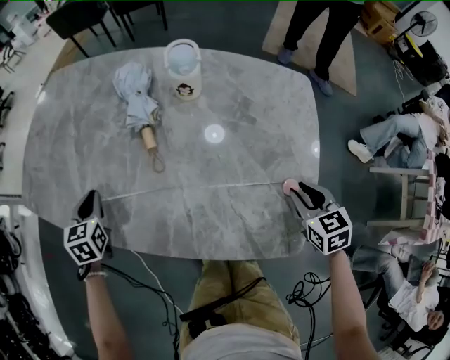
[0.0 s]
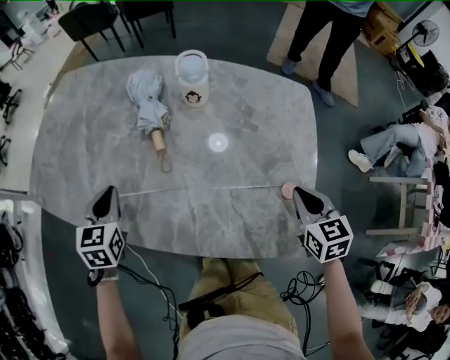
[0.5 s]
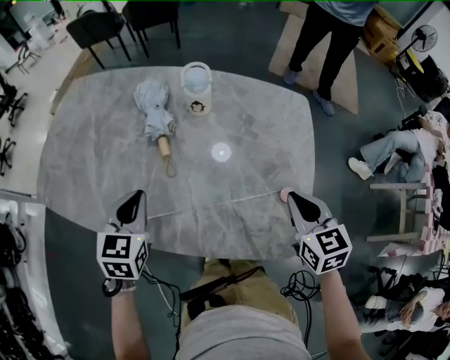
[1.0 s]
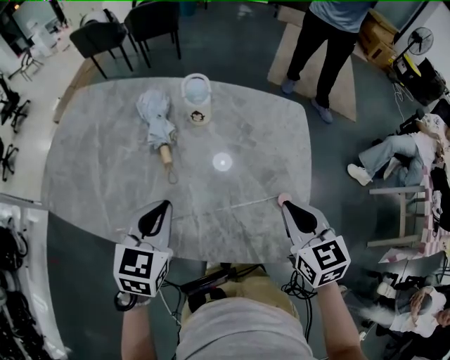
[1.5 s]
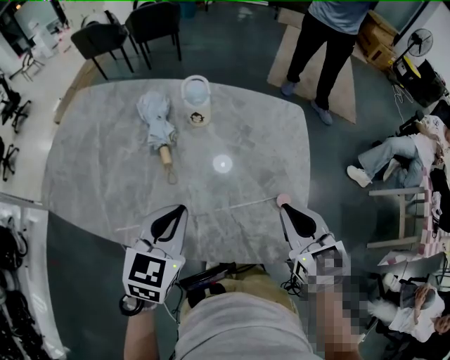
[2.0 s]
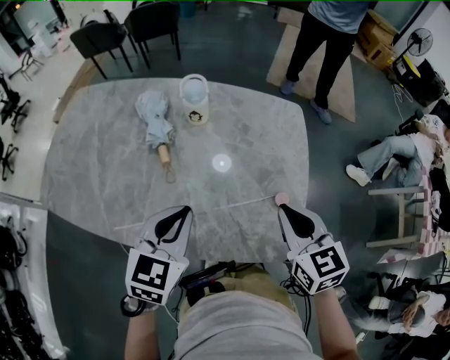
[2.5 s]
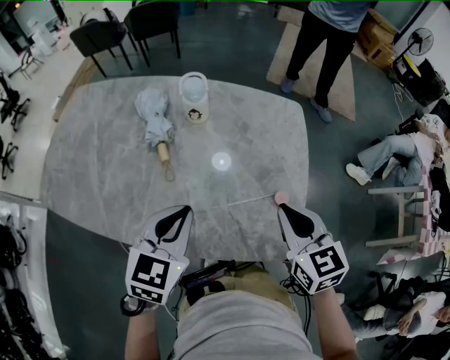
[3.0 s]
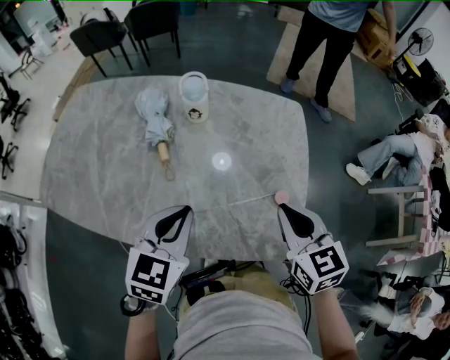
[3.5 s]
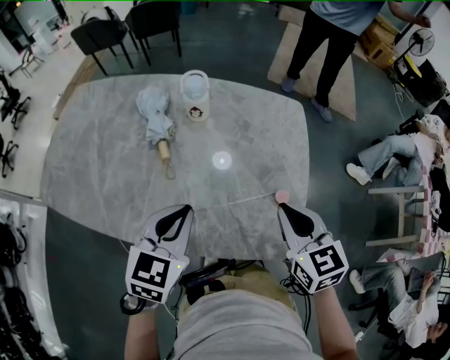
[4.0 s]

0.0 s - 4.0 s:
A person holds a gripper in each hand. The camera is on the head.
0.0 s - 2.0 s: The left gripper travels to the right and upward by roughly 30 cm, and rotates about 30 degrees. The right gripper is displaced upward and to the left by about 15 cm, and closes.
2.0 s - 4.0 s: The grippers move only a little.

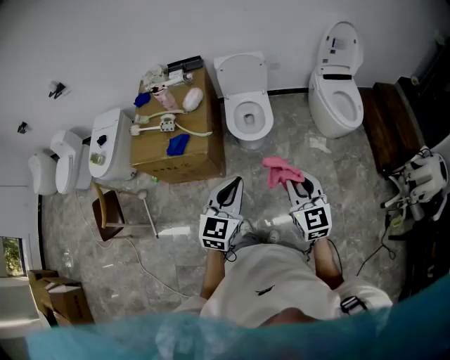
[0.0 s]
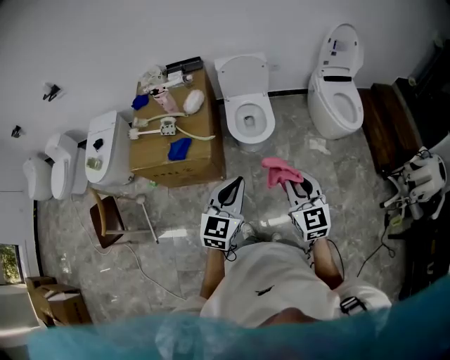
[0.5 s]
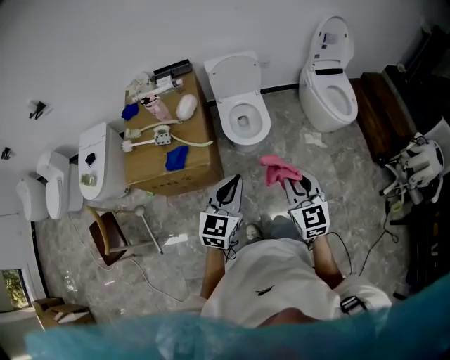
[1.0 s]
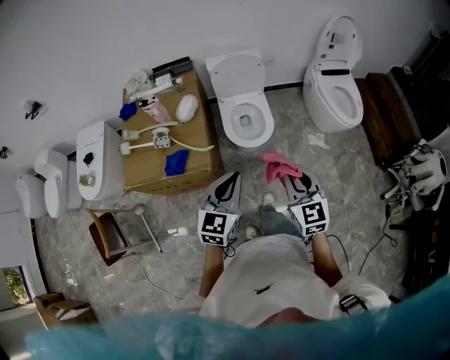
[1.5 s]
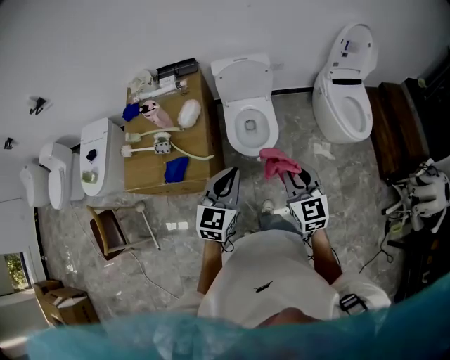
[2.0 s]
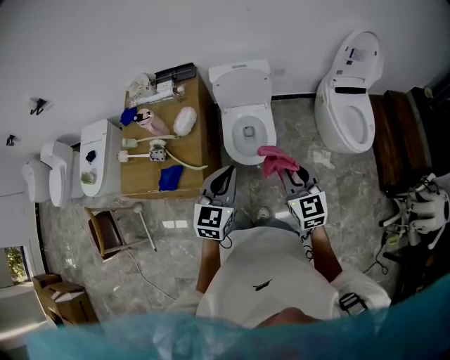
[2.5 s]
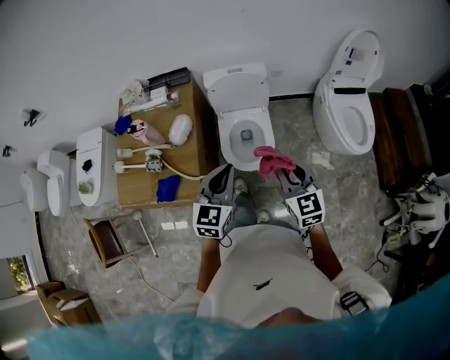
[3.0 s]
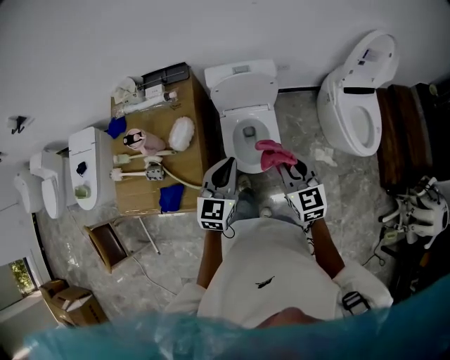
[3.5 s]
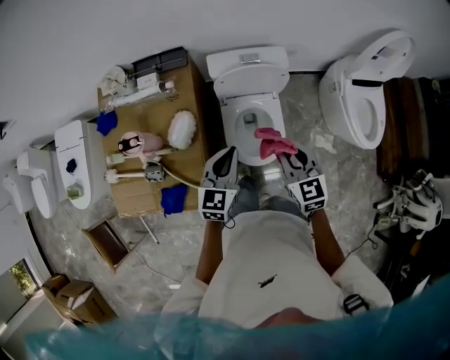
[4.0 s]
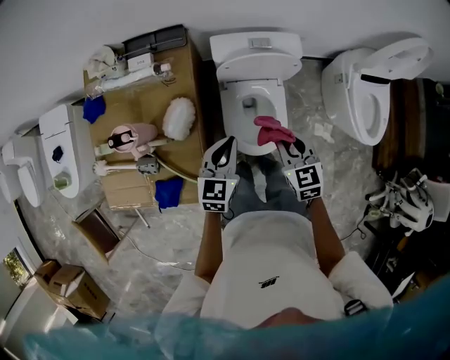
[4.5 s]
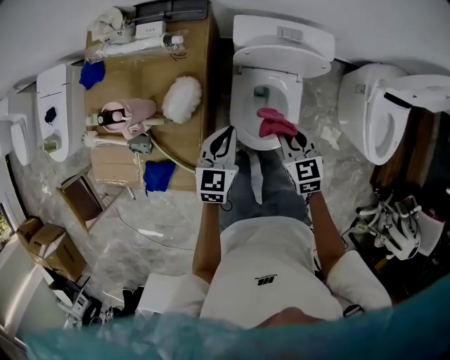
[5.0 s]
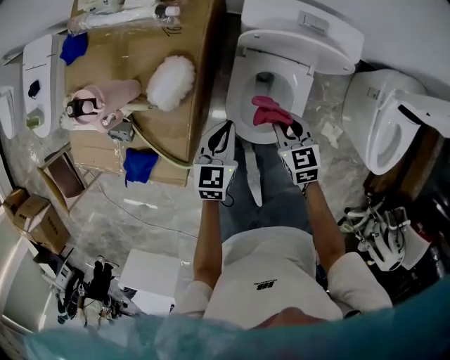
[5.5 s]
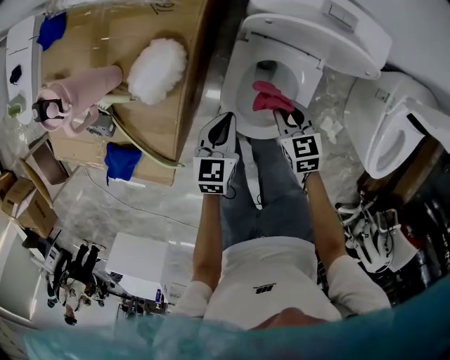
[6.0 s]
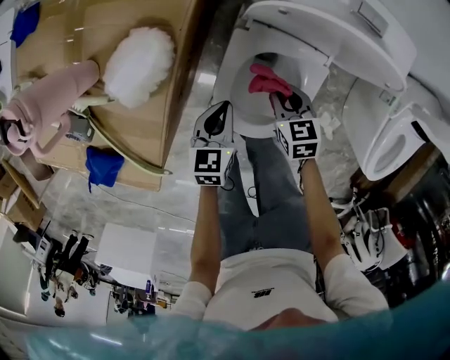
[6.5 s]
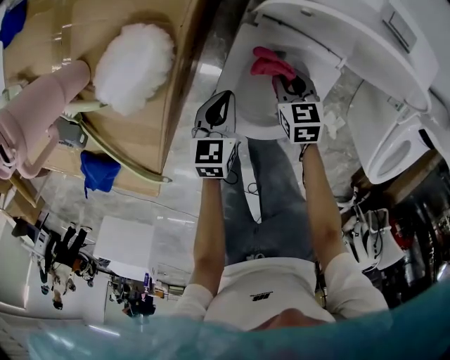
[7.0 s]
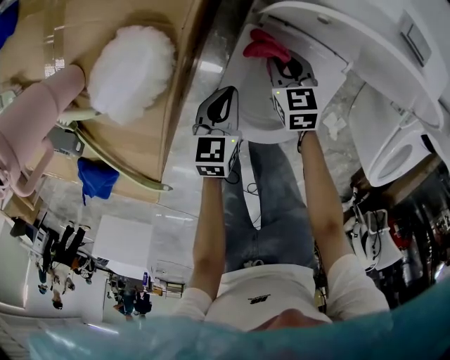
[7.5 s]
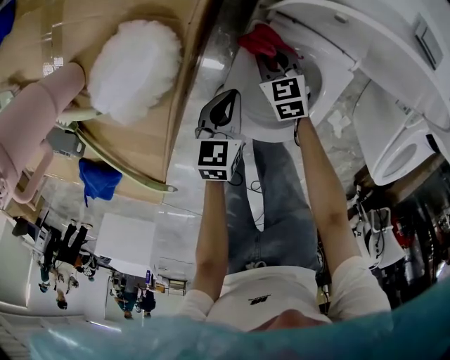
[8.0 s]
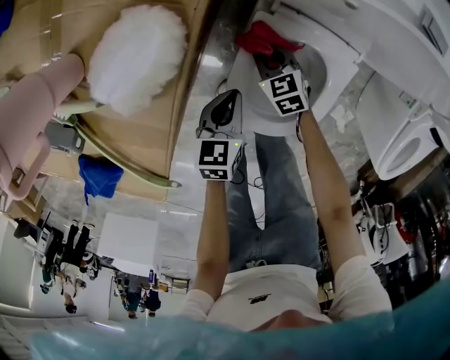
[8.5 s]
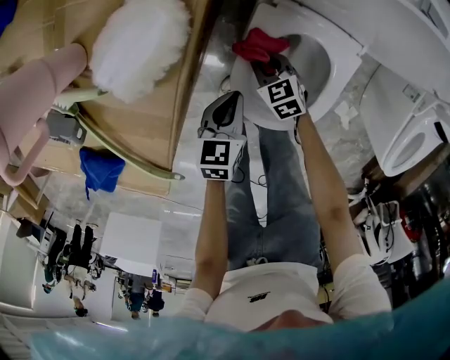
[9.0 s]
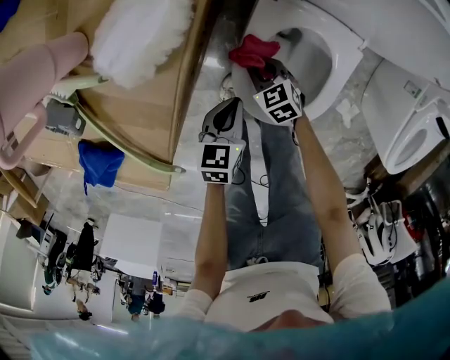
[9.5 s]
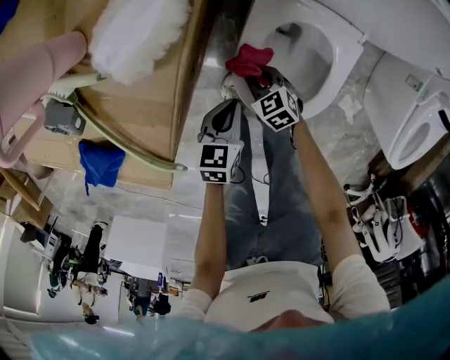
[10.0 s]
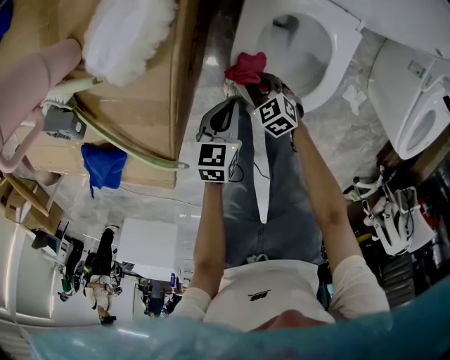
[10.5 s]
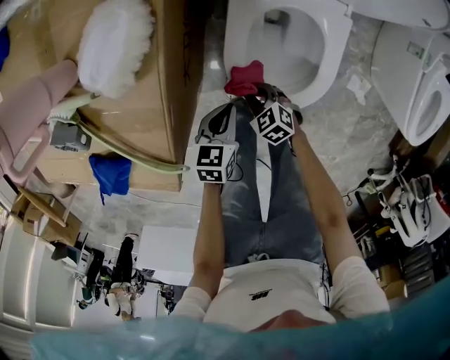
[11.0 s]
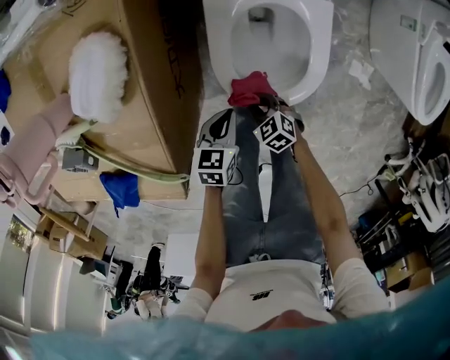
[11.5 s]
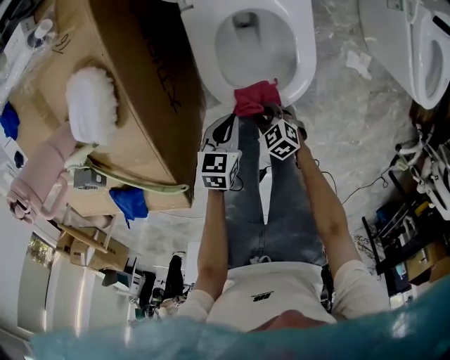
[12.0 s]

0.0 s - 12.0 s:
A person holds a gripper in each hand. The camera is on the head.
0.0 s - 2.0 s: Both grippers travel together forward, some 25 cm.
2.0 s - 4.0 s: Both grippers travel together forward, about 35 cm.
4.0 s - 6.0 s: The grippers both shift downward by some 35 cm. The left gripper rotates about 30 degrees. Meanwhile the right gripper rotates roughly 30 degrees.
6.0 s - 8.0 s: The left gripper heads downward, covering some 15 cm; the right gripper is displaced downward and forward by some 25 cm.
8.0 s - 10.0 s: The left gripper goes some 10 cm backward, while the right gripper is displaced backward and to the left by roughly 15 cm.
10.0 s - 12.0 s: The left gripper goes some 5 cm to the right, and changes its angle by approximately 30 degrees, while the right gripper moves backward, some 15 cm.

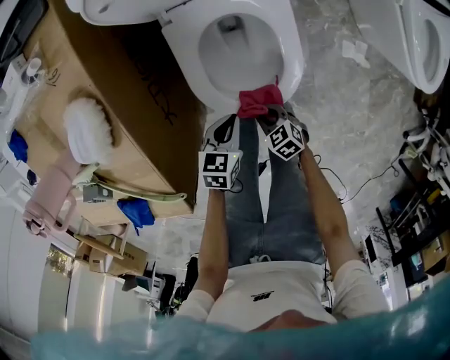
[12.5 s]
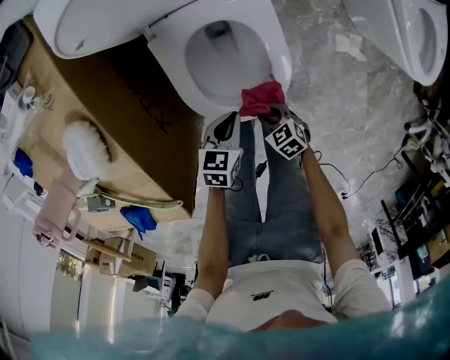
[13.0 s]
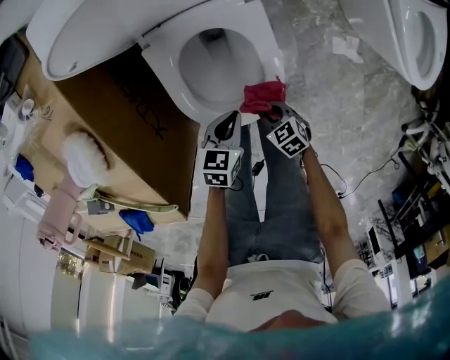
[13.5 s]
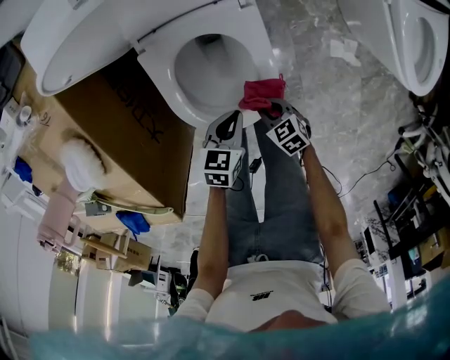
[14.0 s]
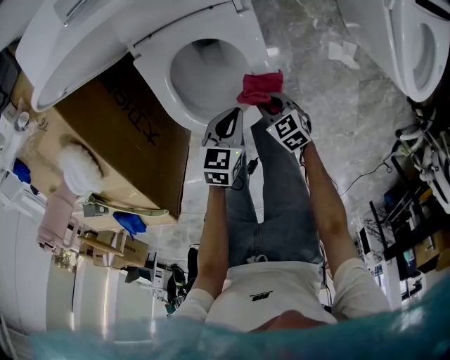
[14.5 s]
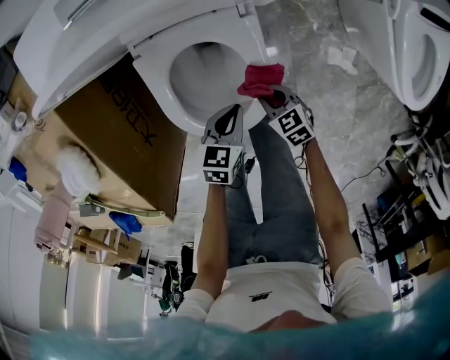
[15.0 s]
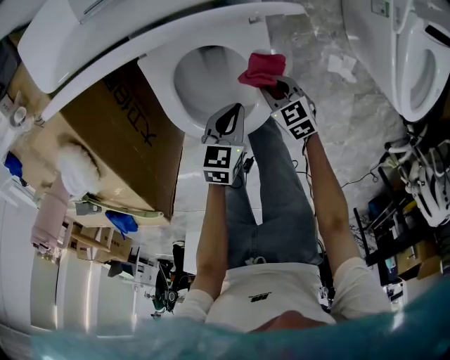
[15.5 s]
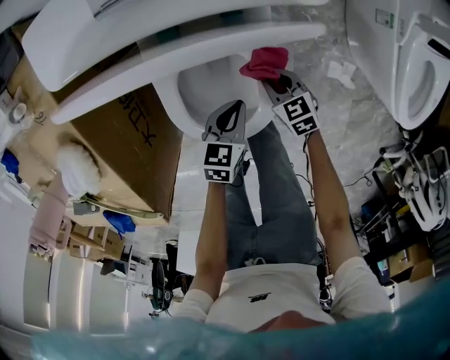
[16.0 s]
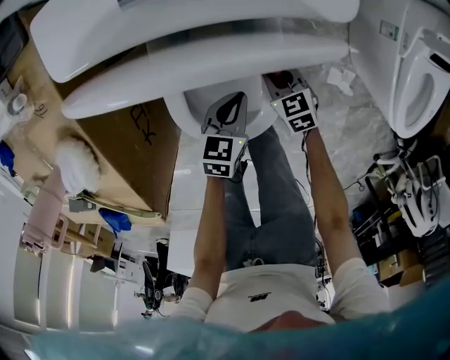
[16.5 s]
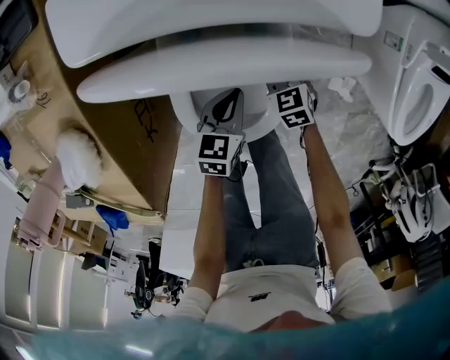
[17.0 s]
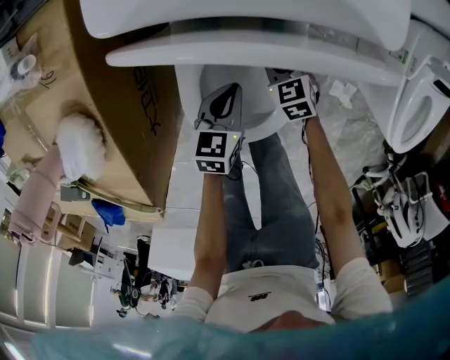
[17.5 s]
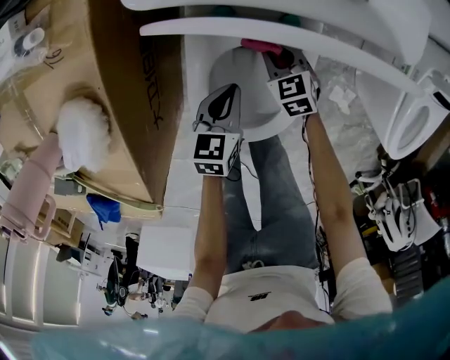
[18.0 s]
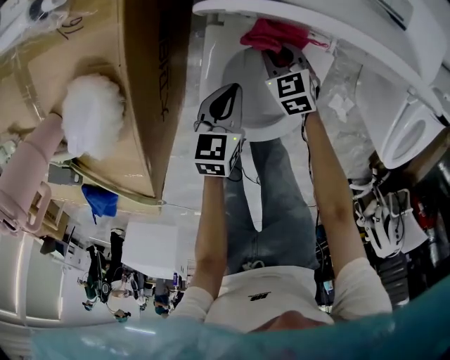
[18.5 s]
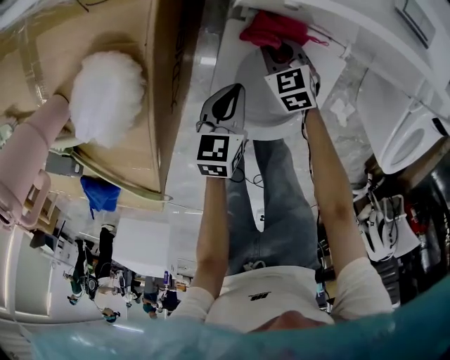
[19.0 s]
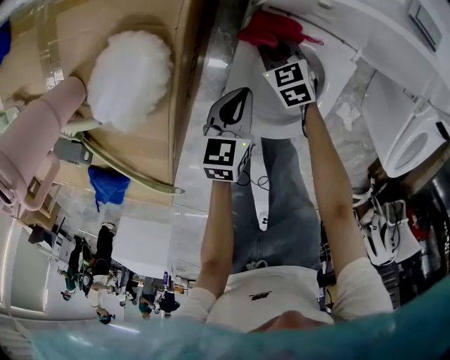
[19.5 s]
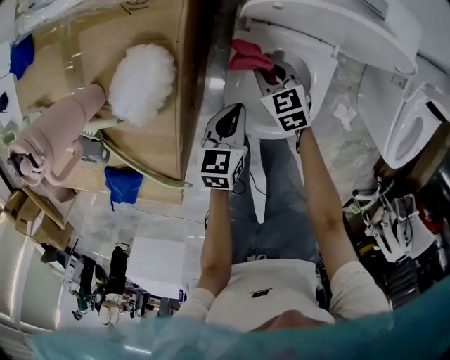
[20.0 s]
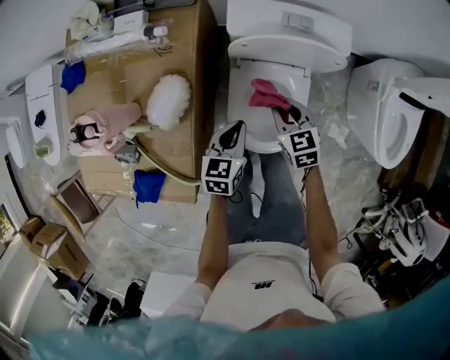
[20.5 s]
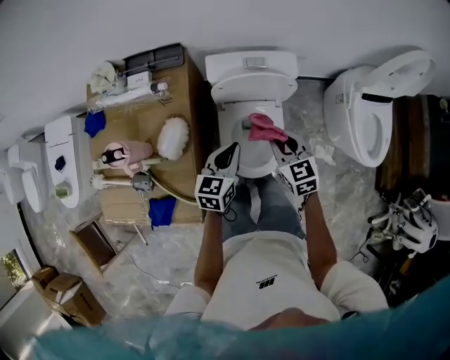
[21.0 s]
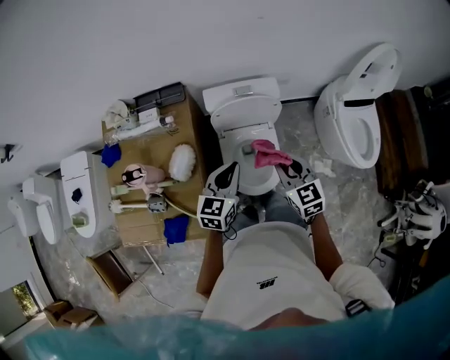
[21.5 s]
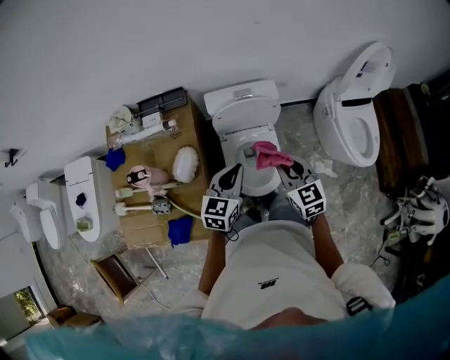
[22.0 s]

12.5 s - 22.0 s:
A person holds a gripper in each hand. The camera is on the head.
12.5 s - 14.5 s: Both grippers move to the right and forward, about 15 cm.
14.5 s - 16.5 s: The left gripper is displaced forward by approximately 10 cm; the right gripper moves forward, about 15 cm.
16.5 s - 18.0 s: The right gripper is displaced to the left and forward by approximately 15 cm, while the left gripper moves to the left, roughly 10 cm.
18.0 s - 20.0 s: The two grippers go approximately 15 cm to the left and upward.
20.0 s - 22.0 s: Both grippers move upward, some 50 cm. The right gripper turns by some 40 degrees; the left gripper rotates approximately 40 degrees.

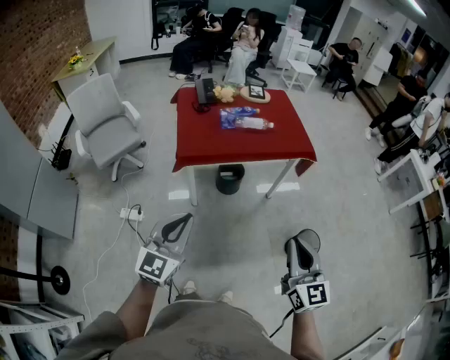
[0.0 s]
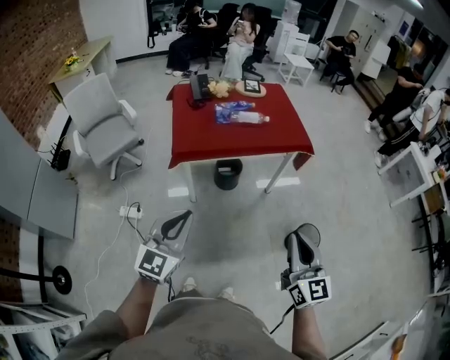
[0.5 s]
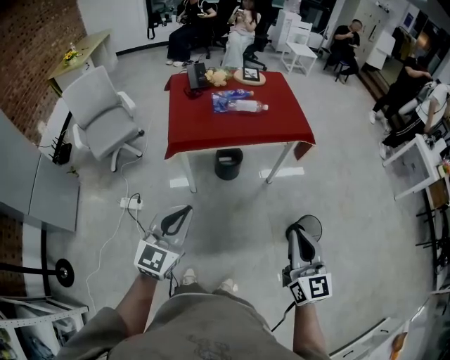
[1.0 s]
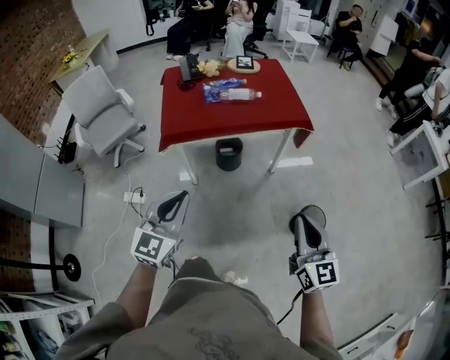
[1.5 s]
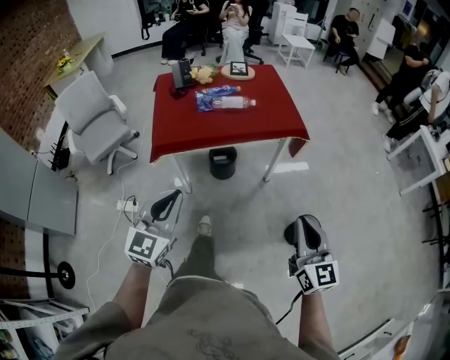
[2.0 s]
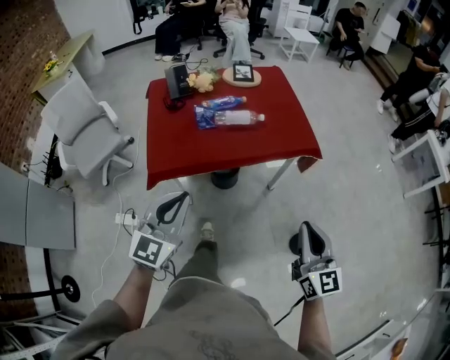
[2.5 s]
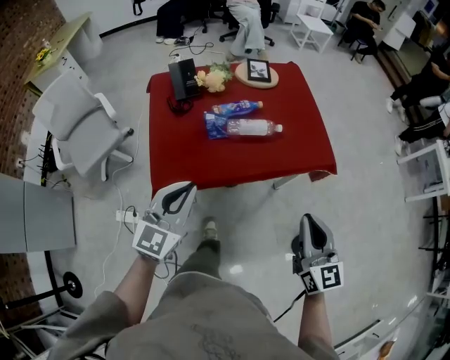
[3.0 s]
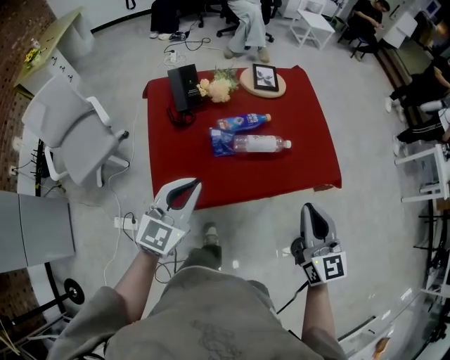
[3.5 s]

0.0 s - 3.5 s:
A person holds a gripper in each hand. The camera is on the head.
0.0 s - 2.0 s: The grippers both shift to the right and forward by approximately 15 cm.
2.0 s - 3.5 s: The pair of grippers is taken forward and to the left, approximately 40 cm.
